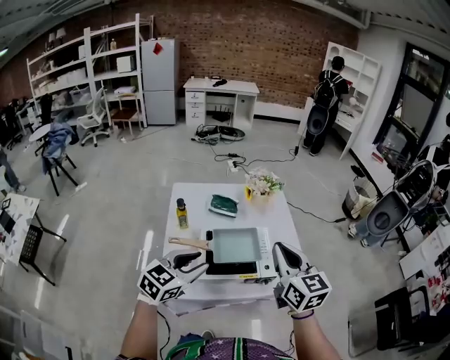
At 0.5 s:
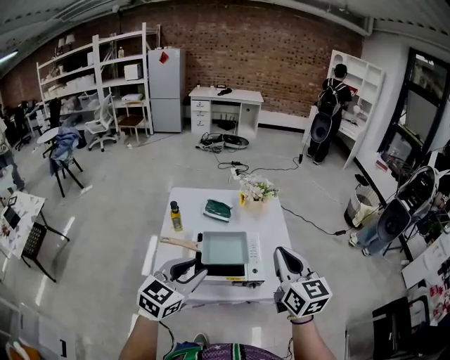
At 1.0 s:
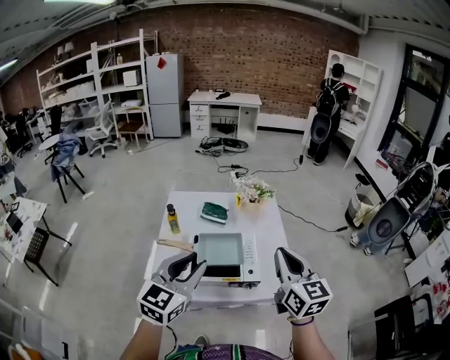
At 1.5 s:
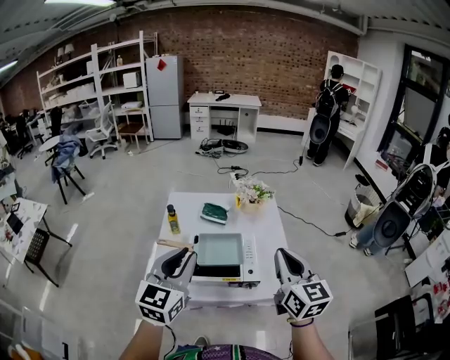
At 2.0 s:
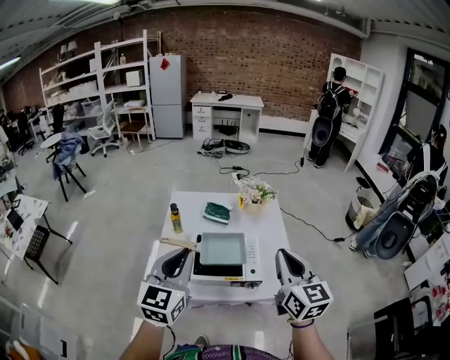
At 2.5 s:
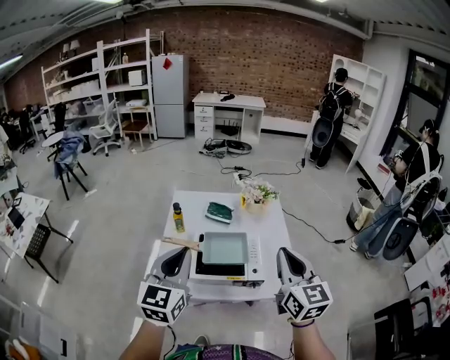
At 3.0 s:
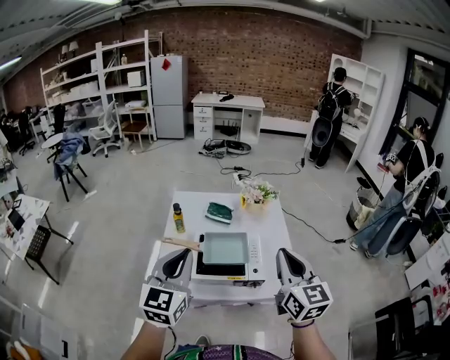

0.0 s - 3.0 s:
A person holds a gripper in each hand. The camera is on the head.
0.0 s - 1.5 s: The left gripper heads upward and to the right, covering approximately 15 cm, and turns by about 30 degrees. The right gripper goes some 10 cm to the right.
1.5 s - 3.0 s: The grippers move only a little.

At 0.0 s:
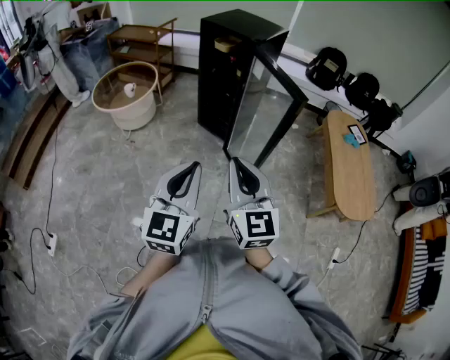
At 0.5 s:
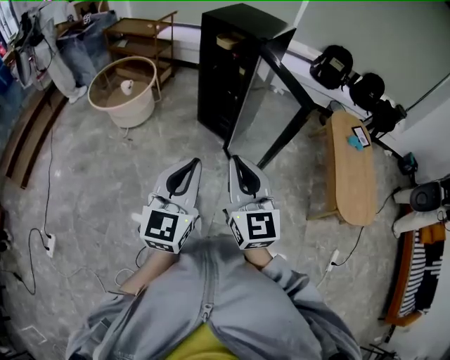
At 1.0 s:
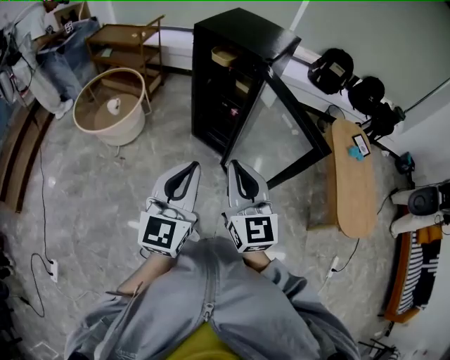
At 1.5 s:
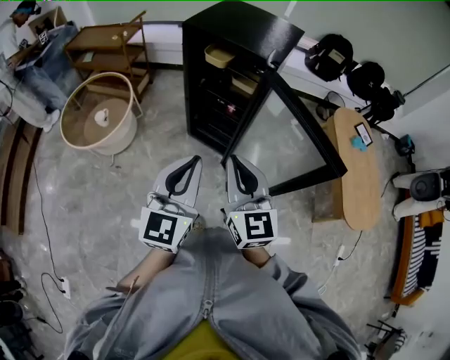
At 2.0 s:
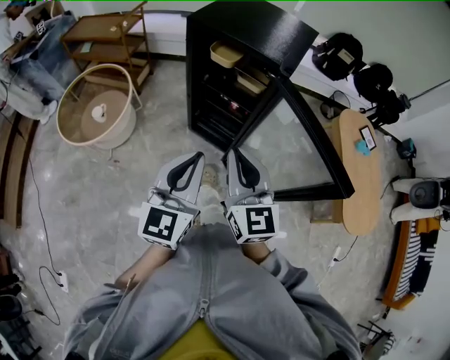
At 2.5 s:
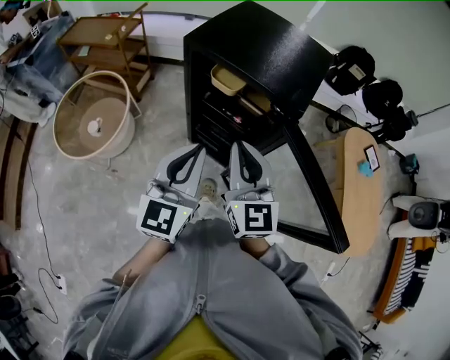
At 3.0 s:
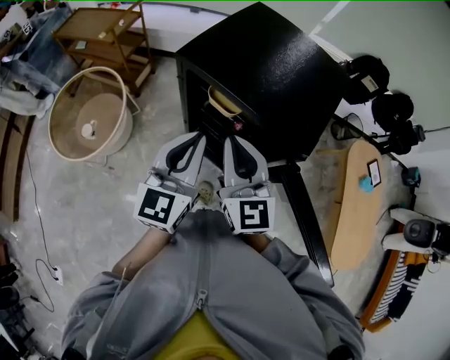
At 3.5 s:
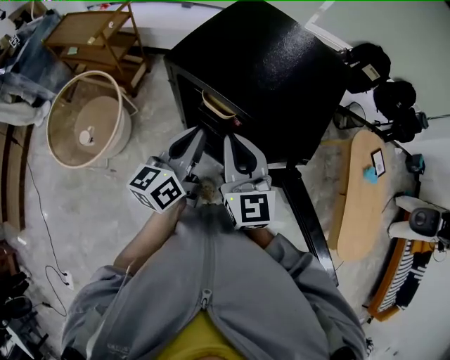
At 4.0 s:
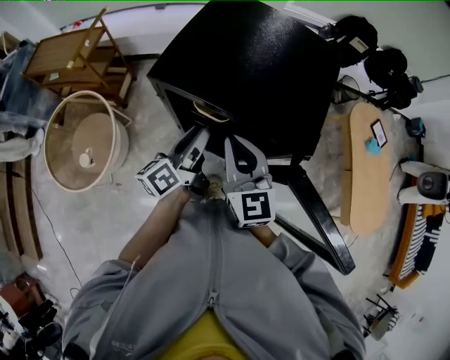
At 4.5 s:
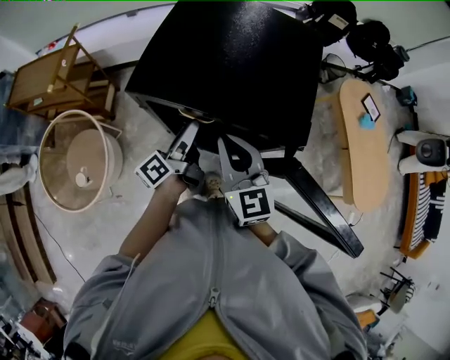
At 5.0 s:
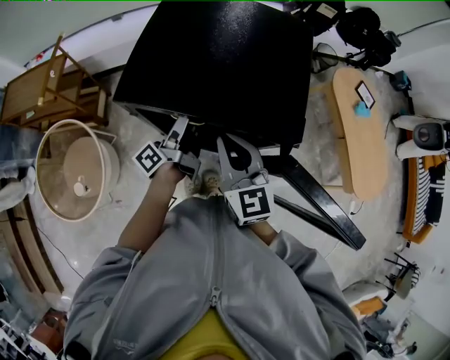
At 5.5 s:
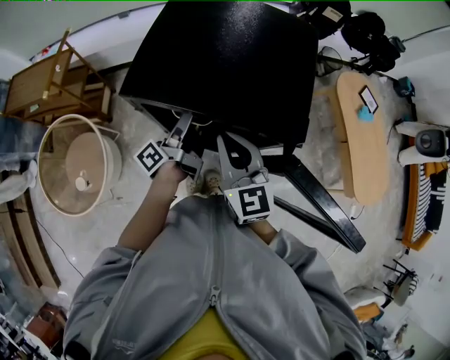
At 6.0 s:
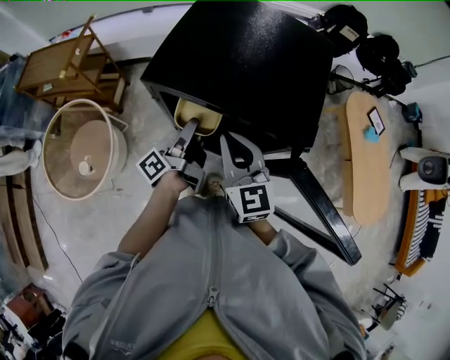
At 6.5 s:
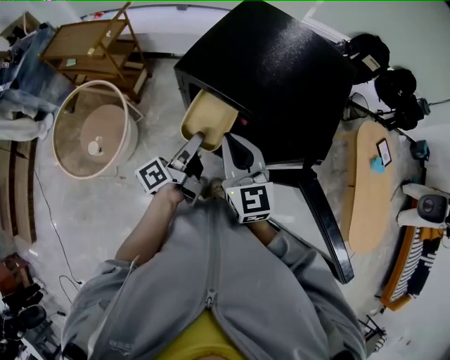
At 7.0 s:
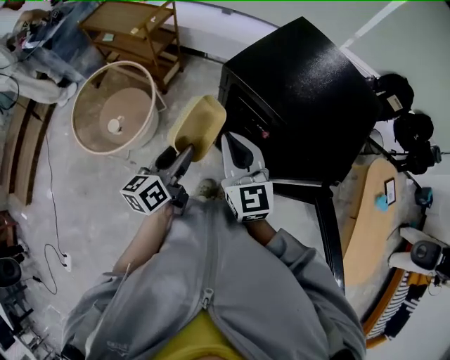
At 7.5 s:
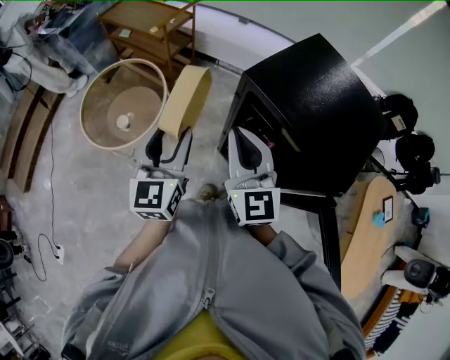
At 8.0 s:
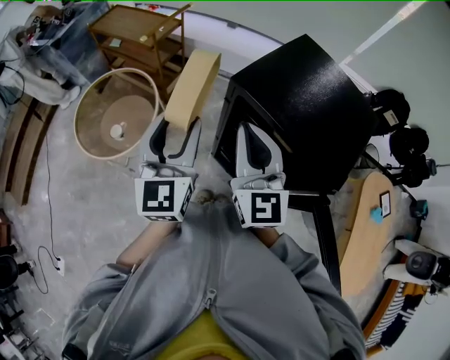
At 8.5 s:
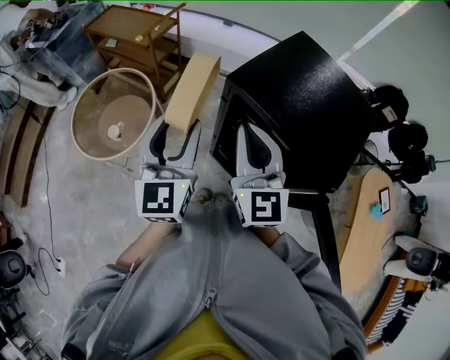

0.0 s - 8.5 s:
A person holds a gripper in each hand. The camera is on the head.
0.0 s - 2.0 s: The two grippers travel together, forward, roughly 40 cm.
2.0 s - 4.0 s: The grippers both shift forward by approximately 35 cm. The left gripper rolls counterclockwise, seen from behind, by roughly 60 degrees, and opens its fingers.
4.0 s - 6.5 s: The left gripper reaches approximately 5 cm forward, then returns, changes its angle by some 20 degrees, and opens and closes again.
6.5 s - 8.5 s: The right gripper travels upward and to the left by roughly 10 cm. Meanwhile the left gripper heads upward and to the left, covering approximately 20 cm, and rolls clockwise, seen from behind, by some 80 degrees.

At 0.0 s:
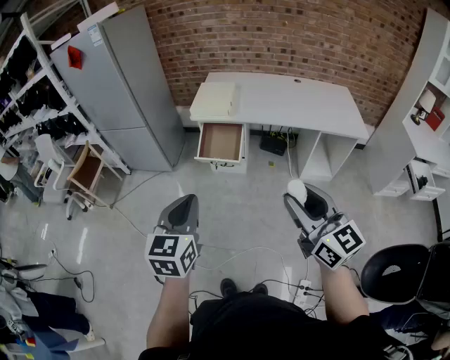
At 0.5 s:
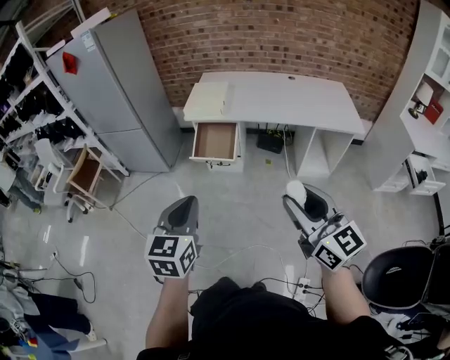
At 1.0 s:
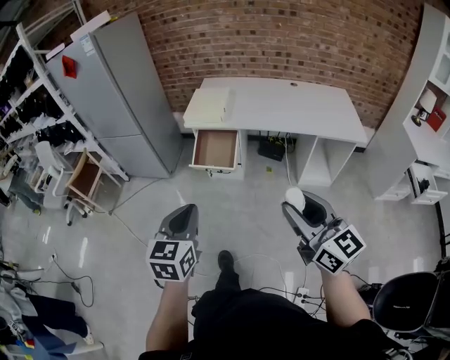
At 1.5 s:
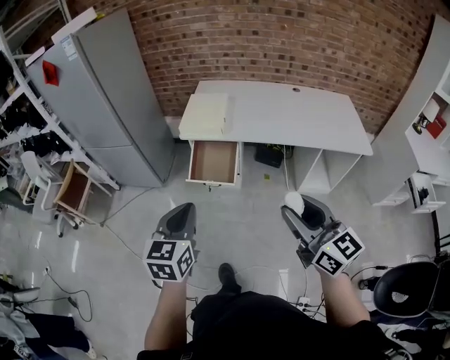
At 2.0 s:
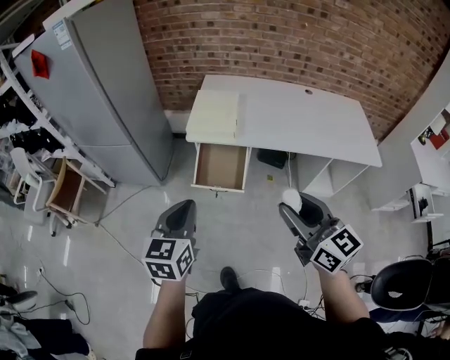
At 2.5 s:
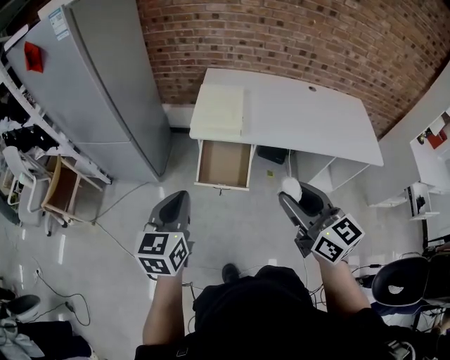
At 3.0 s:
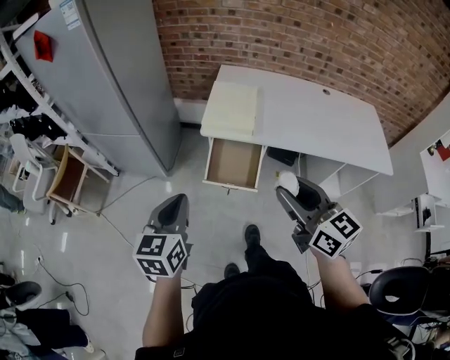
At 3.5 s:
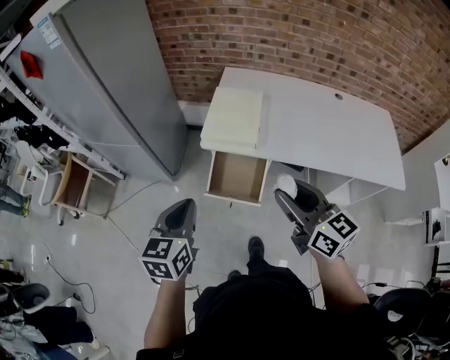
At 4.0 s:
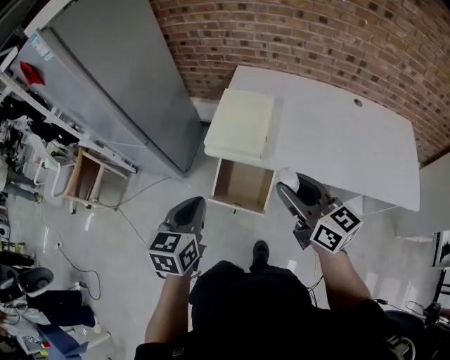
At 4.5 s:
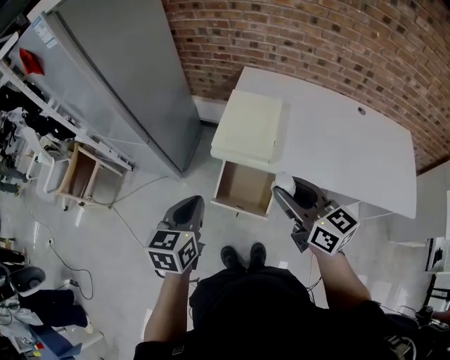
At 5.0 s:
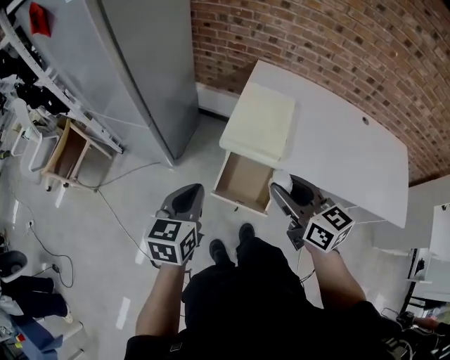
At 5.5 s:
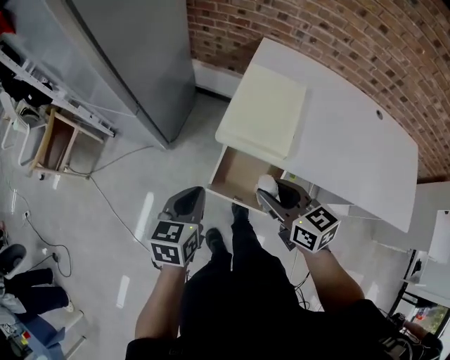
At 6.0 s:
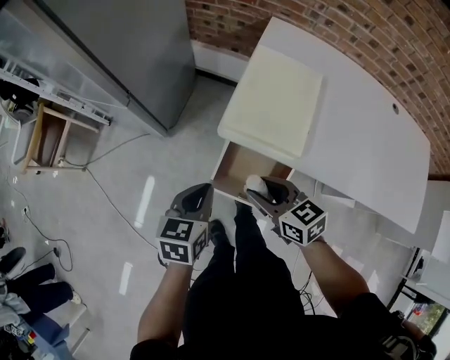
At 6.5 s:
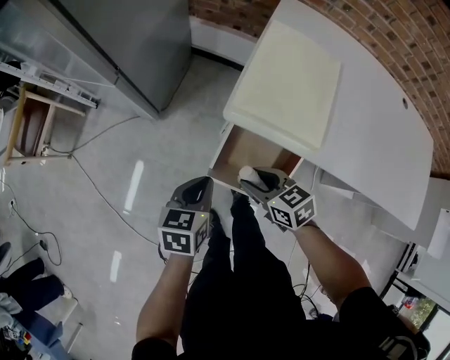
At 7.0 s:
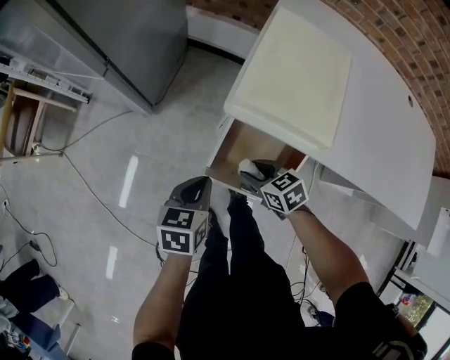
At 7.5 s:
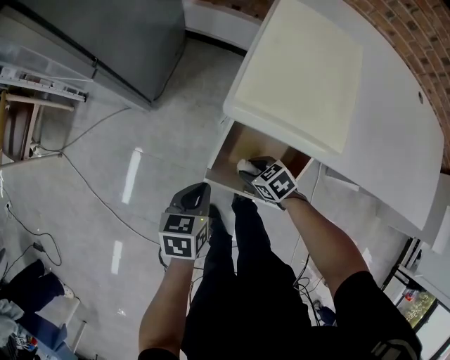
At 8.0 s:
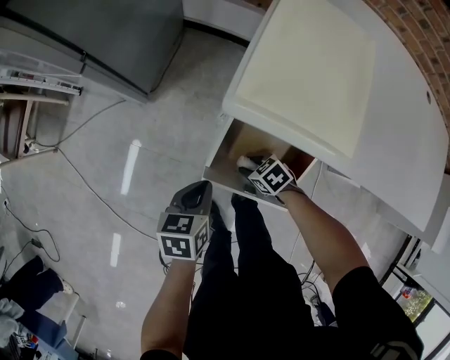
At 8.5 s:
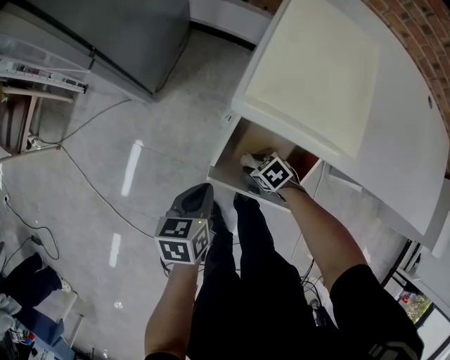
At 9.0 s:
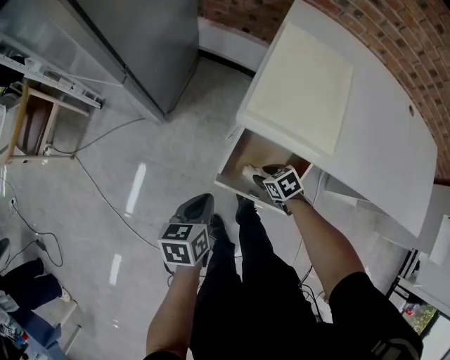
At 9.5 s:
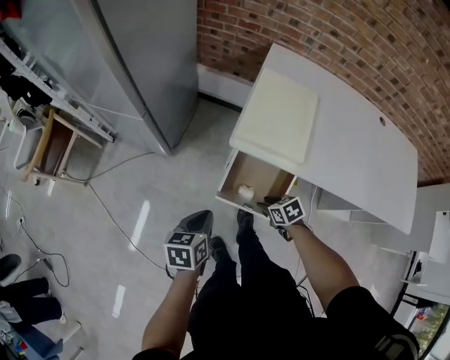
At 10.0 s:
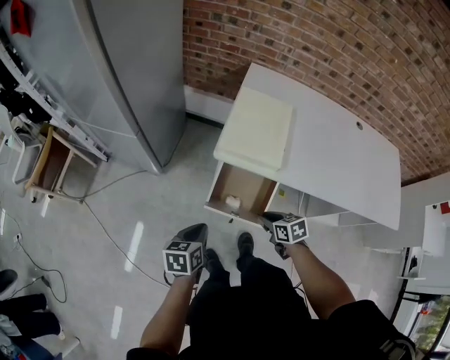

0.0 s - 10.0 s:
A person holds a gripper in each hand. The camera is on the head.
0.0 s - 2.0 s: The grippers both shift forward by some 25 cm.
2.0 s - 4.0 s: The two grippers go approximately 25 cm forward.
4.0 s - 6.0 s: The right gripper is displaced downward, to the left and forward by some 30 cm, and turns by about 30 degrees; the left gripper goes roughly 25 cm downward and forward.
6.0 s - 8.0 s: The left gripper is displaced downward by some 20 cm. Meanwhile the right gripper is displaced downward by approximately 35 cm, and tilts its fingers roughly 30 degrees downward.
8.0 s - 10.0 s: The left gripper heads upward, covering approximately 20 cm, while the right gripper shifts approximately 25 cm upward, and rotates approximately 30 degrees.

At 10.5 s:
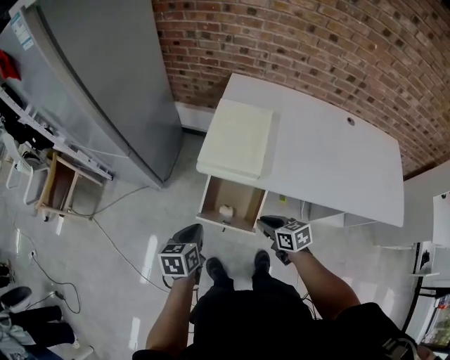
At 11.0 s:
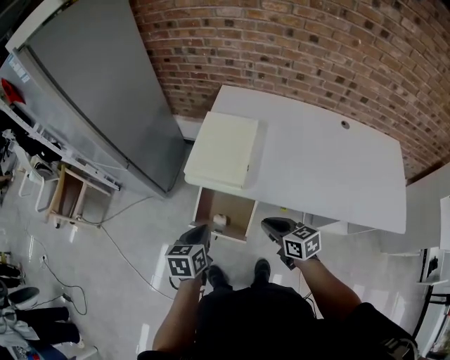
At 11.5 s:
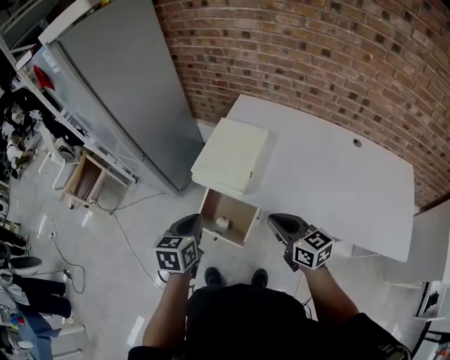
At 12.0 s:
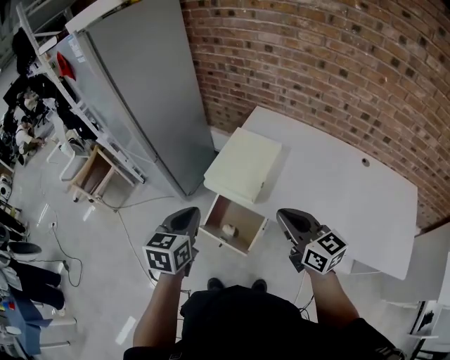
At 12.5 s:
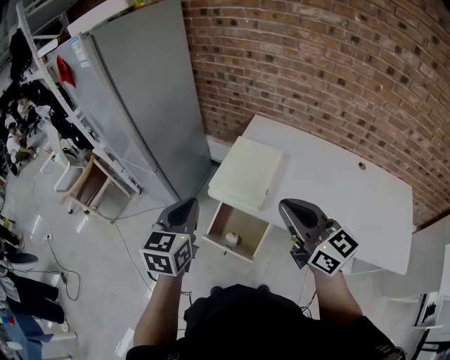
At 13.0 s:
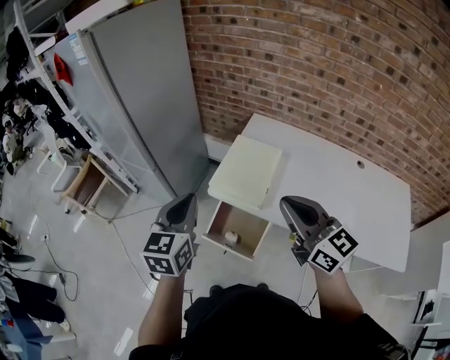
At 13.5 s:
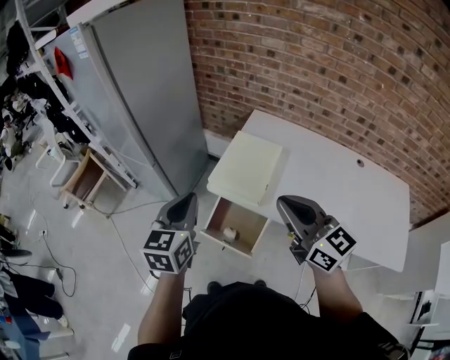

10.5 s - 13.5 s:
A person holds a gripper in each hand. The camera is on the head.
10.5 s - 12.0 s: The two grippers go approximately 25 cm upward and to the right. The right gripper tips its fingers upward by roughly 30 degrees. The left gripper swivels some 20 degrees.
12.0 s - 13.5 s: The left gripper goes about 5 cm upward, while the right gripper heads upward and to the left, covering approximately 10 cm.

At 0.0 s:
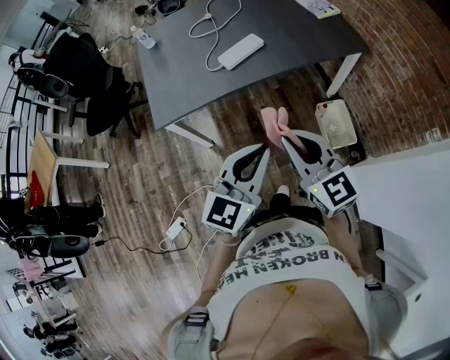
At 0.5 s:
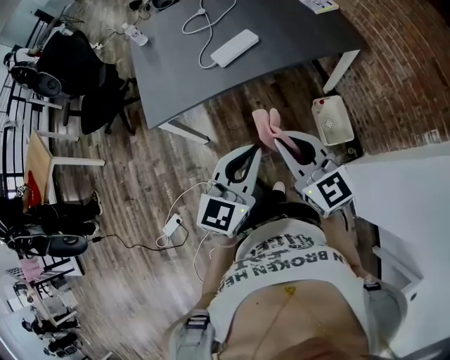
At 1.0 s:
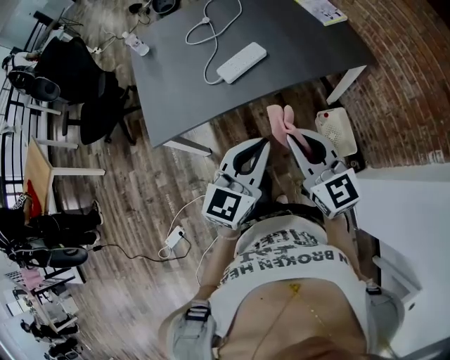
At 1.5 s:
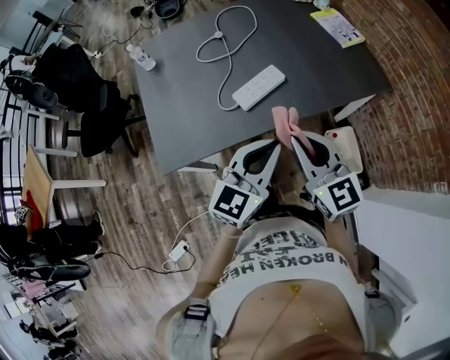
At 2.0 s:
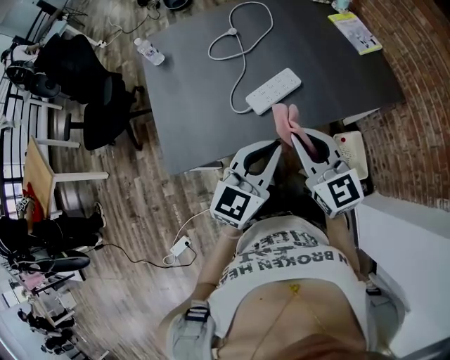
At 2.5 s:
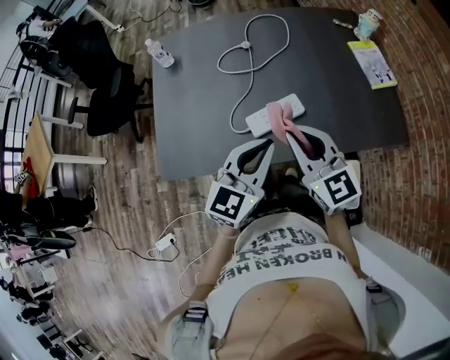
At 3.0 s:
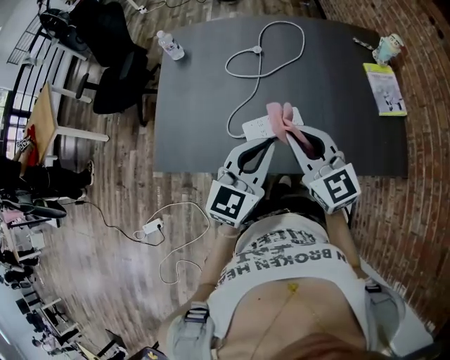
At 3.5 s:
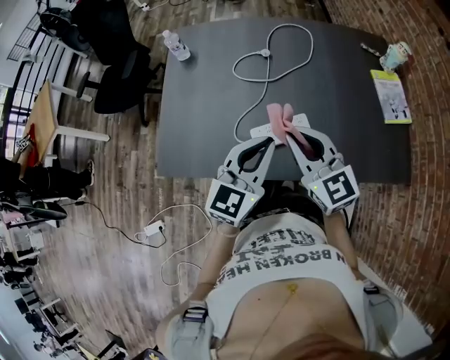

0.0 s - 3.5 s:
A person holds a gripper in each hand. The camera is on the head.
0.0 s - 2.0 s: Both grippers travel together forward, roughly 30 cm.
2.0 s - 3.5 s: Both grippers move forward, roughly 15 cm. The right gripper rotates about 20 degrees. The left gripper changes its angle by about 20 degrees.
